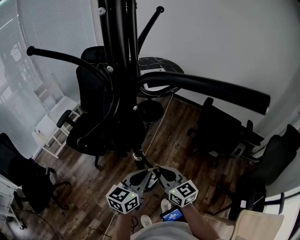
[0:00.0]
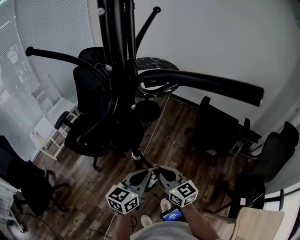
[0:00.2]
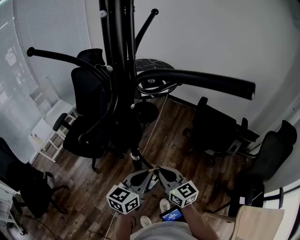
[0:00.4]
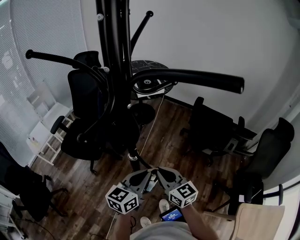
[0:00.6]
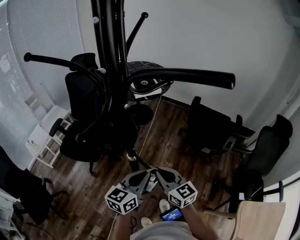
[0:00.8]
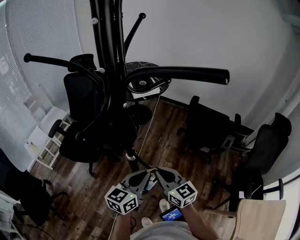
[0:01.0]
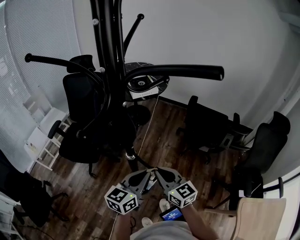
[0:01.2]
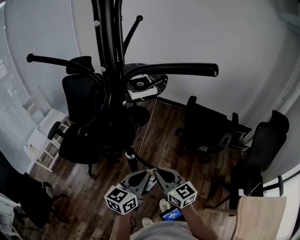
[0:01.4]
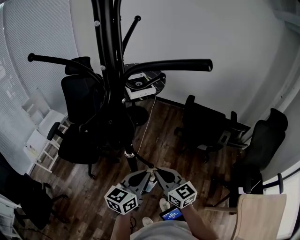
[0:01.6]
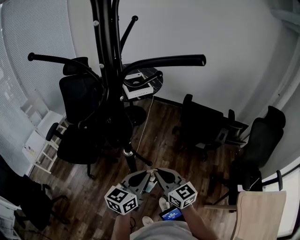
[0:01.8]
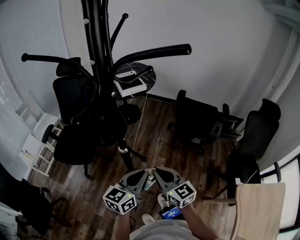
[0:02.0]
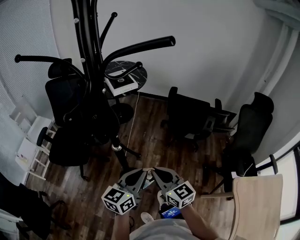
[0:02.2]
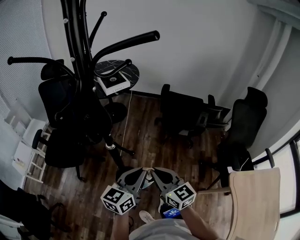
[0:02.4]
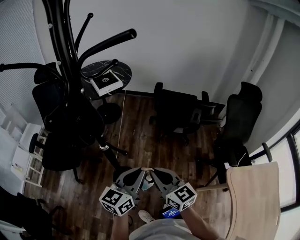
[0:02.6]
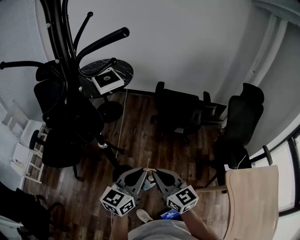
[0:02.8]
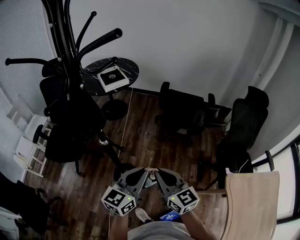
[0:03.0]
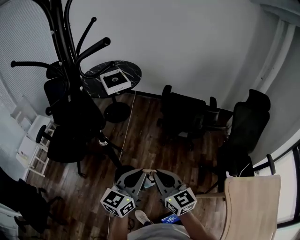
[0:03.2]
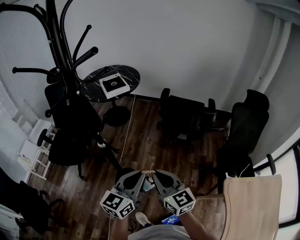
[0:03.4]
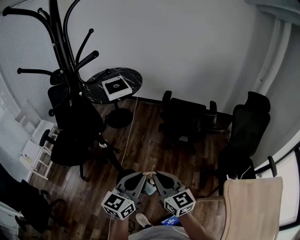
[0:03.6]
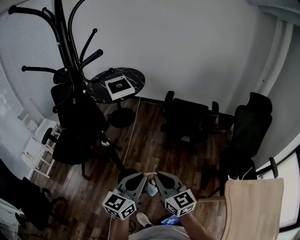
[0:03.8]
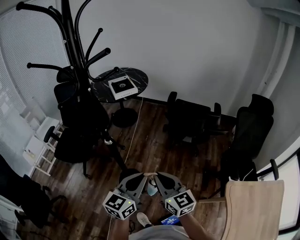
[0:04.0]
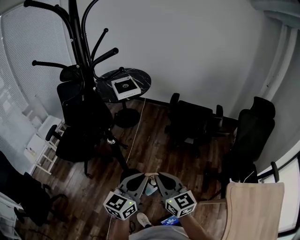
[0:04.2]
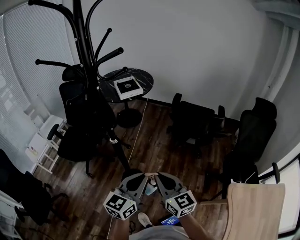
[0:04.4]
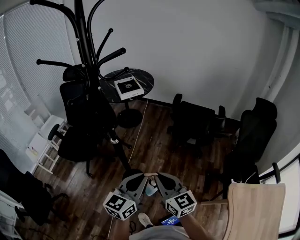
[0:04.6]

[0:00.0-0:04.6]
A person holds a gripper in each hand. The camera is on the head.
0:00.0 to 0:01.6: The left gripper moves about 5 cm. Meanwhile the right gripper changes place by roughly 5 cm.
0:01.6 to 0:03.0: The grippers both shift to the right and backward by about 15 cm.
0:03.0 to 0:04.6: The left gripper goes approximately 5 cm backward.

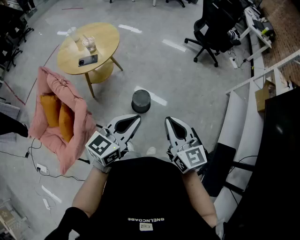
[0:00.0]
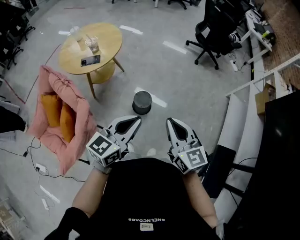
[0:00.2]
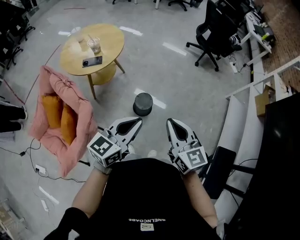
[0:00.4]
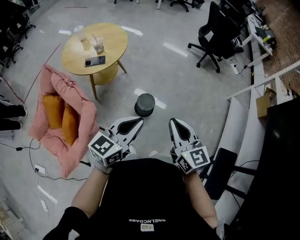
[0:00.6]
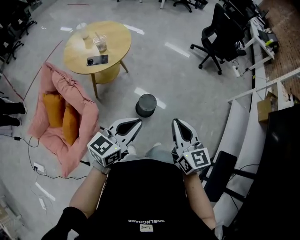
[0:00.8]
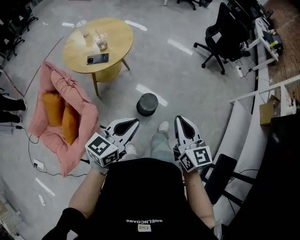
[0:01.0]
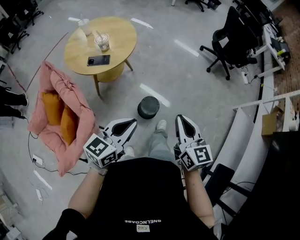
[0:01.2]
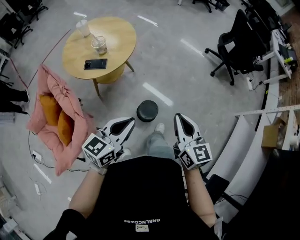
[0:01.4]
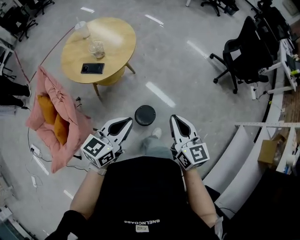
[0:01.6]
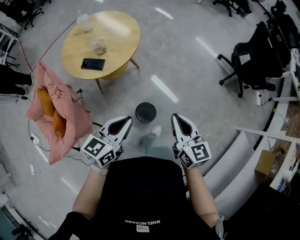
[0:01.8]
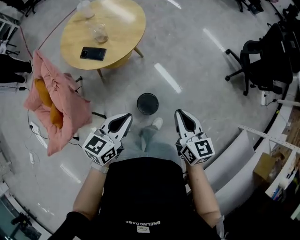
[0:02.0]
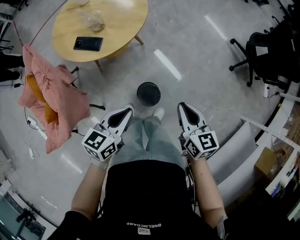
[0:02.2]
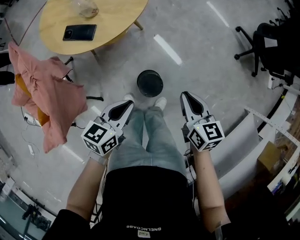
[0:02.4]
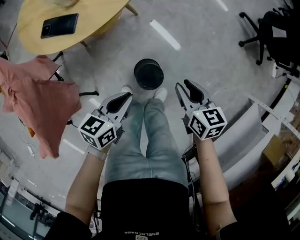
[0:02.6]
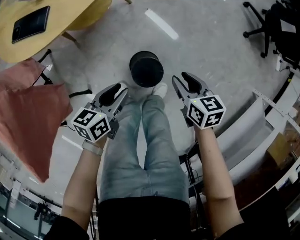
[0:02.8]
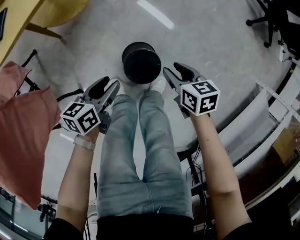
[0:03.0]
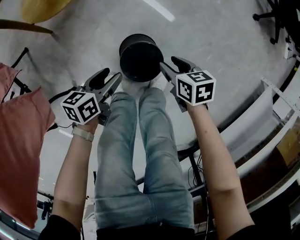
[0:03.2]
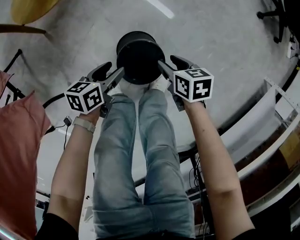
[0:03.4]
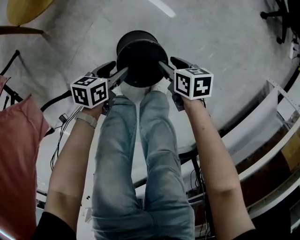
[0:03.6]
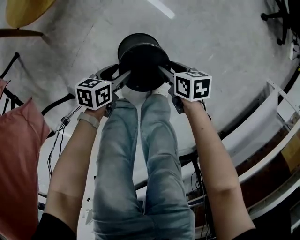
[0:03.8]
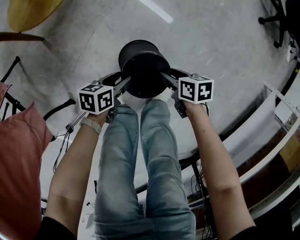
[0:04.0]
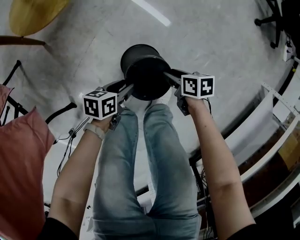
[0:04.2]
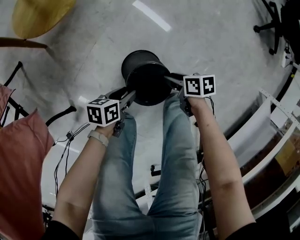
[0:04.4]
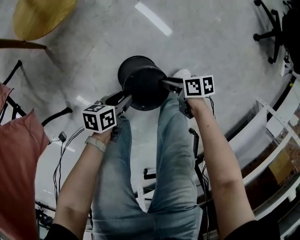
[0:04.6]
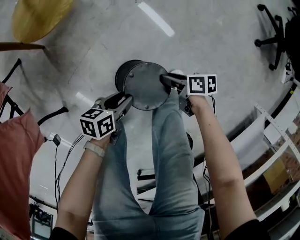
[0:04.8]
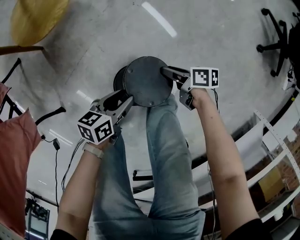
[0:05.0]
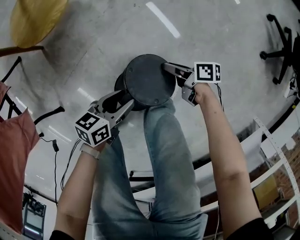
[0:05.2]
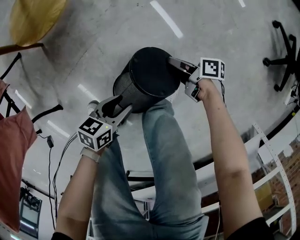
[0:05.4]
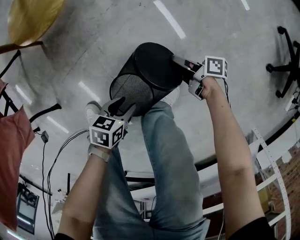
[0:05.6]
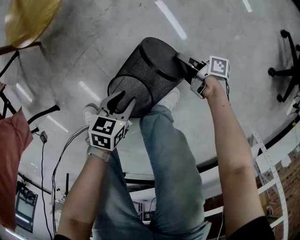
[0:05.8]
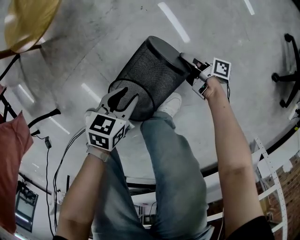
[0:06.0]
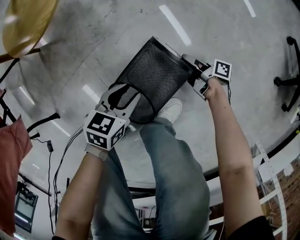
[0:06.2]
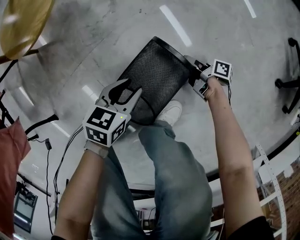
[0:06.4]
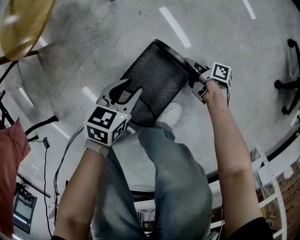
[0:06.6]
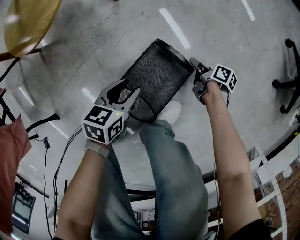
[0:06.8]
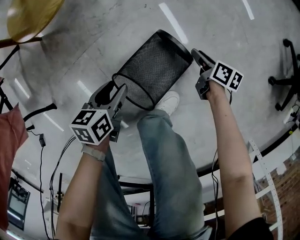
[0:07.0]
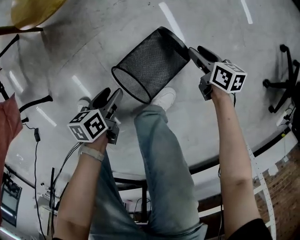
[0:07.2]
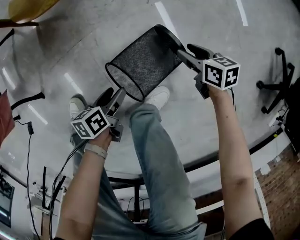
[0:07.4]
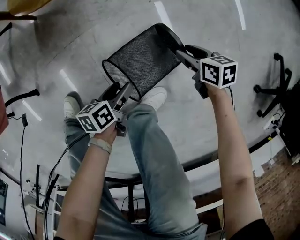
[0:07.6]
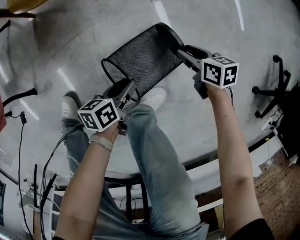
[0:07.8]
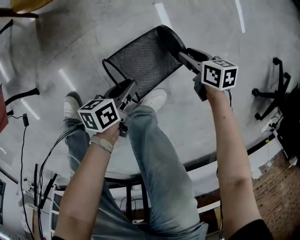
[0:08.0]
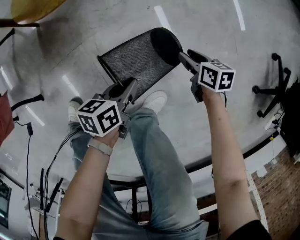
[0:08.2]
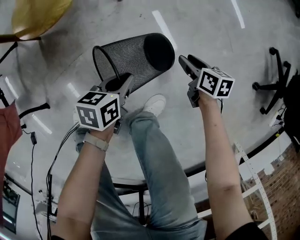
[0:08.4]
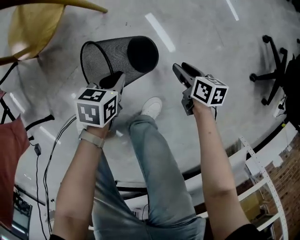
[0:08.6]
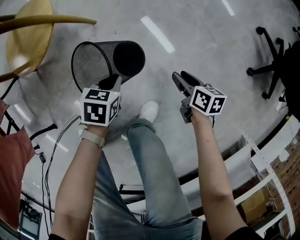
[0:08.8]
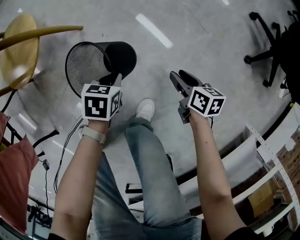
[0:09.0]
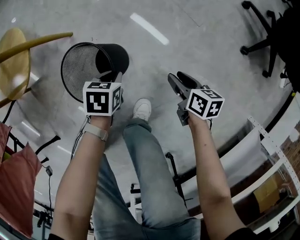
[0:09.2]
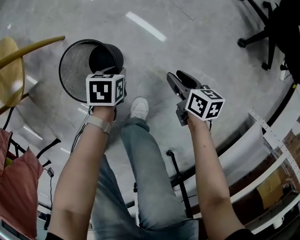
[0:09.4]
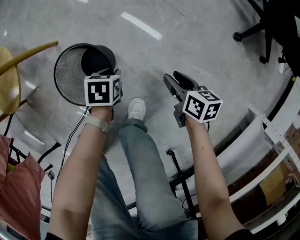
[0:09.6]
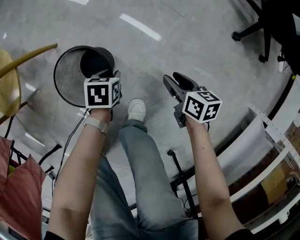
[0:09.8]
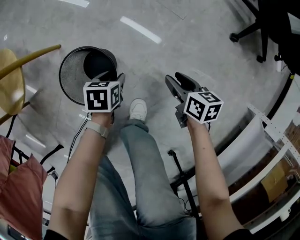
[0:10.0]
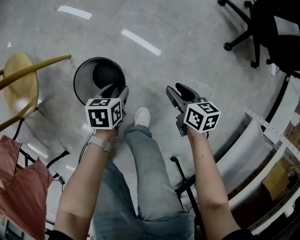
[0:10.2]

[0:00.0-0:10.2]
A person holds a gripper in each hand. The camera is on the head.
0:00.0 to 0:01.4: The left gripper travels forward, to the left and downward by some 20 cm; the right gripper goes some 20 cm forward.
0:01.4 to 0:03.0: Both grippers travel together downward, some 50 cm. The right gripper tilts its fingers about 40 degrees downward, and opens its fingers; the left gripper rotates roughly 40 degrees, and opens.
0:03.0 to 0:04.4: The grippers both shift downward by some 20 cm. The right gripper swivels some 30 degrees.
0:04.4 to 0:05.8: The left gripper travels upward and back again, approximately 5 cm each way, and swivels about 20 degrees, while the right gripper changes place by some 30 cm, and swivels roughly 30 degrees.
0:05.8 to 0:07.2: The left gripper heads to the left, covering some 5 cm, and rotates about 40 degrees; the right gripper is displaced upward and forward by approximately 10 cm, and twists roughly 40 degrees counterclockwise, seen from behind.
0:07.2 to 0:08.8: The left gripper moves about 20 cm, rotates around the line of its fingers by approximately 40 degrees, clockwise from behind, and closes up. The right gripper moves approximately 10 cm.
0:08.8 to 0:10.2: The left gripper travels to the right by roughly 10 cm, and opens; the right gripper shifts roughly 15 cm to the right and upward.

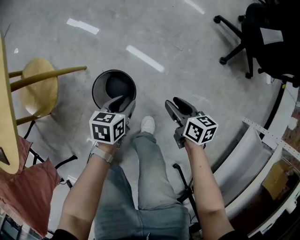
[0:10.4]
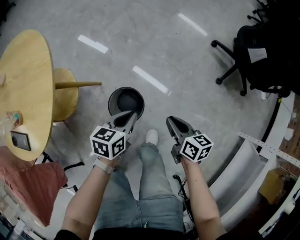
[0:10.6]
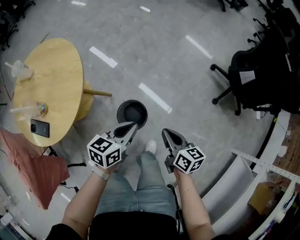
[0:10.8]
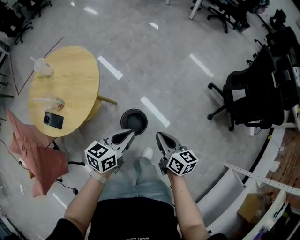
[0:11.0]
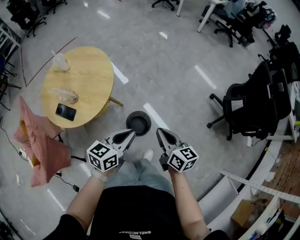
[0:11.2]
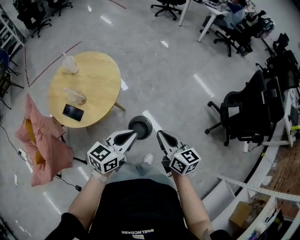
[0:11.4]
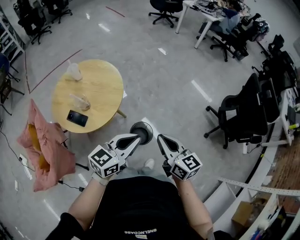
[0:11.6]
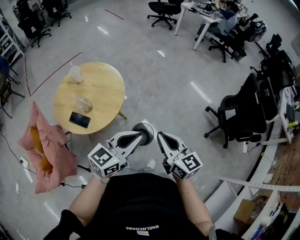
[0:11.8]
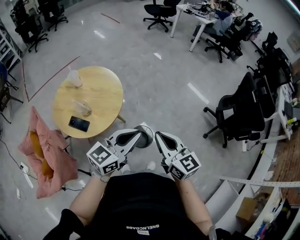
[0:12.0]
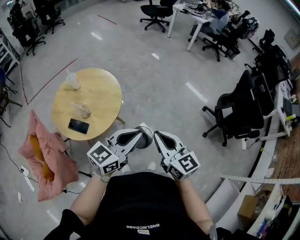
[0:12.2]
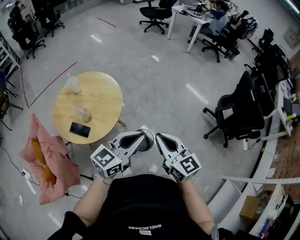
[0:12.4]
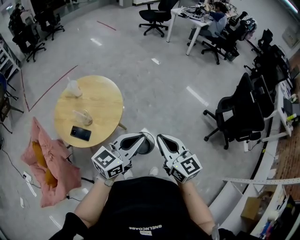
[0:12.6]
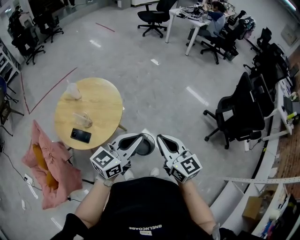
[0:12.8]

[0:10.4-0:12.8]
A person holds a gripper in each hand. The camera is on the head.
0:10.4 to 0:11.6: Both grippers move upward, some 60 cm. The left gripper points its fingers roughly 40 degrees further upward, and closes; the right gripper rotates about 40 degrees, and closes up.
0:11.6 to 0:12.8: Both grippers travel together upward, roughly 5 cm.

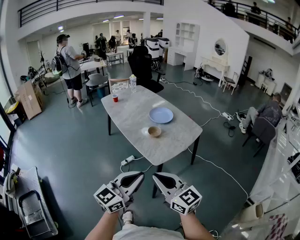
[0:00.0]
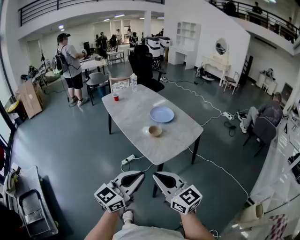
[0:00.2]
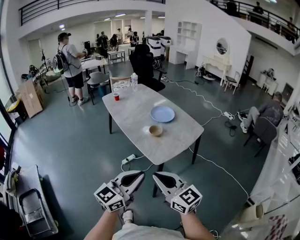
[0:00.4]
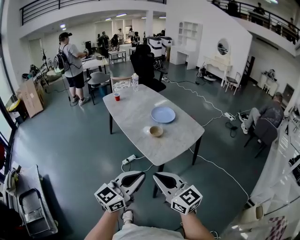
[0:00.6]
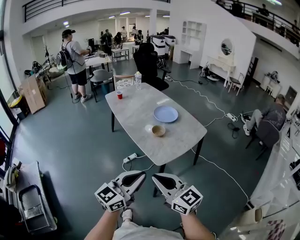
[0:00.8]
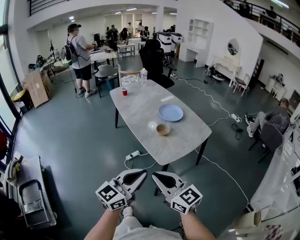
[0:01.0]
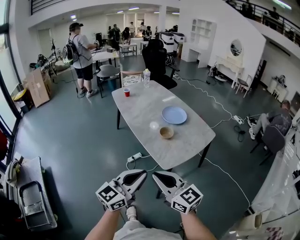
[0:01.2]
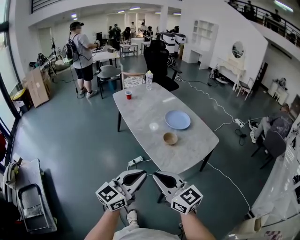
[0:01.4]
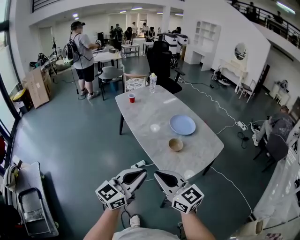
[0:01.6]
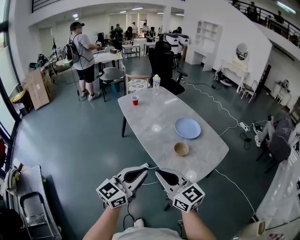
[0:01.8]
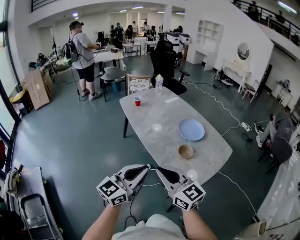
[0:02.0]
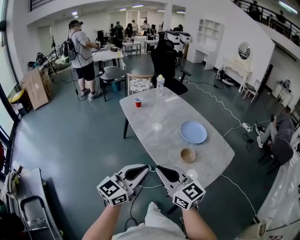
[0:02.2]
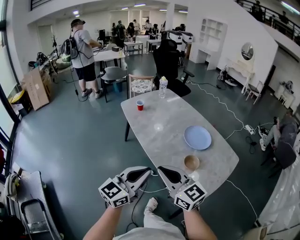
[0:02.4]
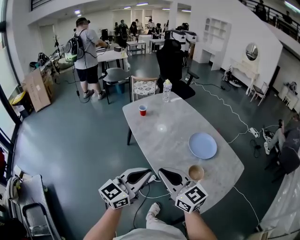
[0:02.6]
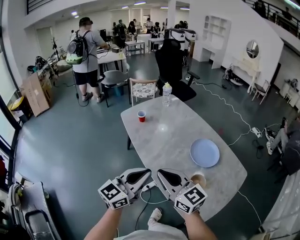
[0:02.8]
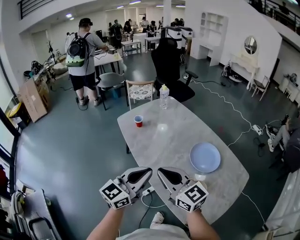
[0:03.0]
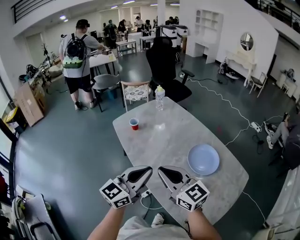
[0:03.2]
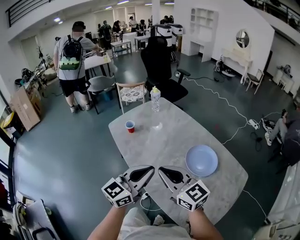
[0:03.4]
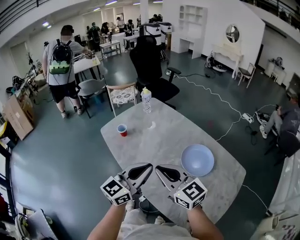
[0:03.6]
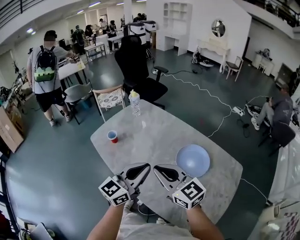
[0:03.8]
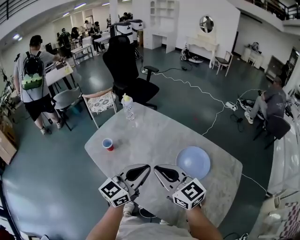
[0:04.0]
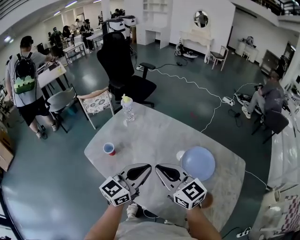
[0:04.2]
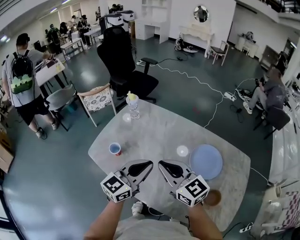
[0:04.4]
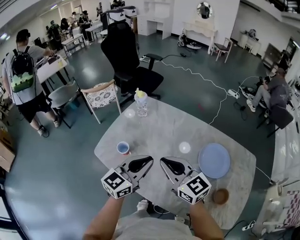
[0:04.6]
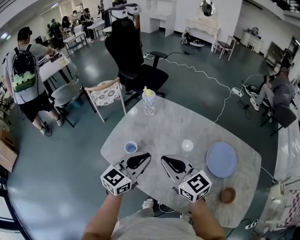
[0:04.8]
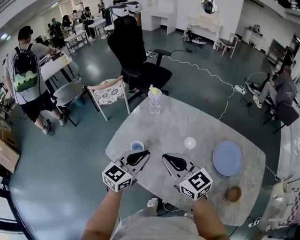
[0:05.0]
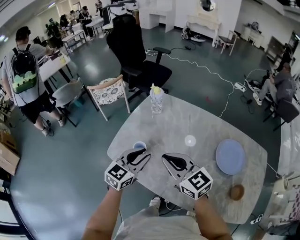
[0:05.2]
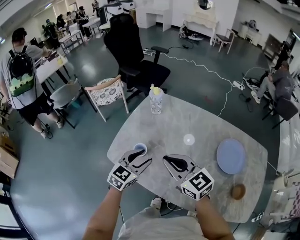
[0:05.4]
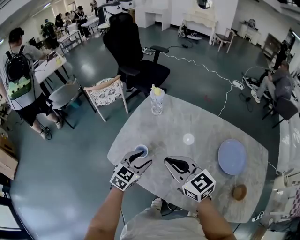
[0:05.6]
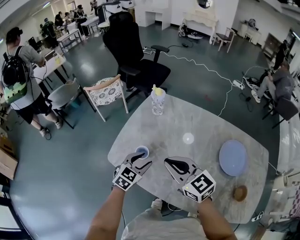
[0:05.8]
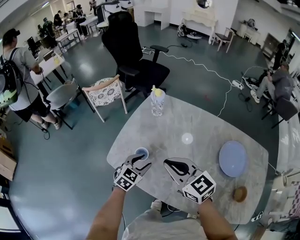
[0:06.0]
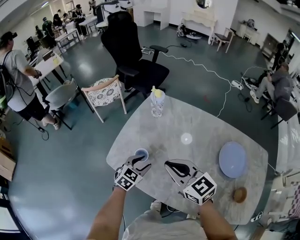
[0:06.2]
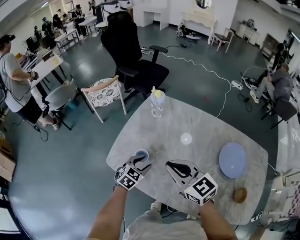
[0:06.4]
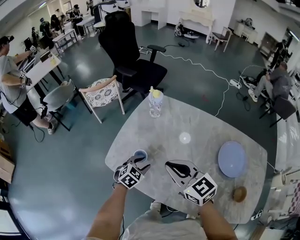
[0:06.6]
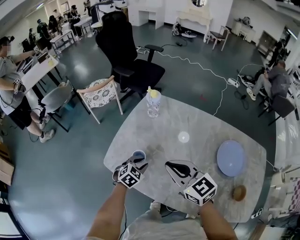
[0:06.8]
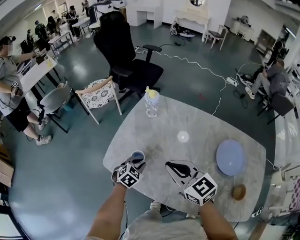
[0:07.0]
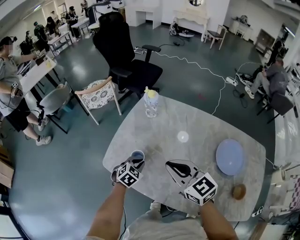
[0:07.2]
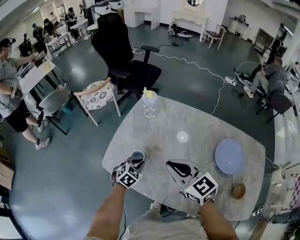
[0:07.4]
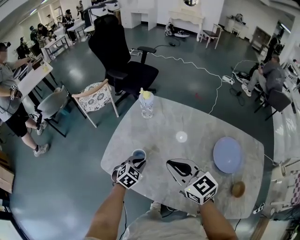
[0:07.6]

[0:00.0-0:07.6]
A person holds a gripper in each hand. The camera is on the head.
0:00.0 to 0:01.6: The grippers both shift forward and to the left by some 20 cm.
0:01.6 to 0:03.0: Both grippers are carried forward, about 40 cm.
0:03.0 to 0:04.6: The left gripper moves about 35 cm, and turns by about 30 degrees; the right gripper ends up approximately 35 cm from where it was, and swivels roughly 30 degrees.
0:04.6 to 0:06.0: The right gripper travels to the left, forward and downward by roughly 15 cm. Meanwhile the left gripper travels downward, to the left and forward by about 25 cm, tilts its fingers approximately 30 degrees downward, and opens up.
0:06.0 to 0:07.6: The left gripper closes up.
